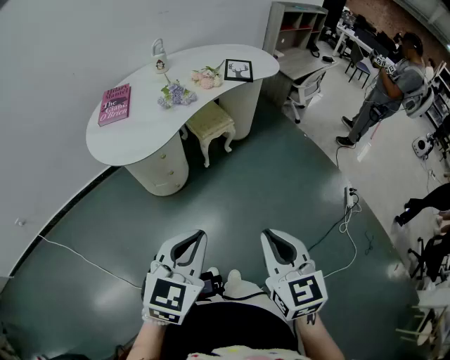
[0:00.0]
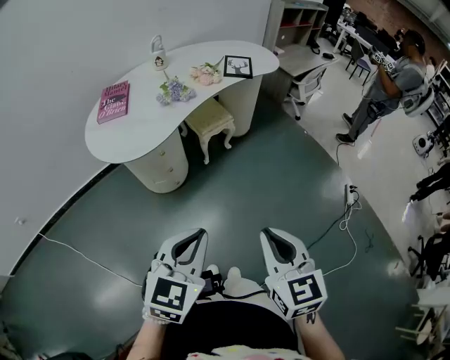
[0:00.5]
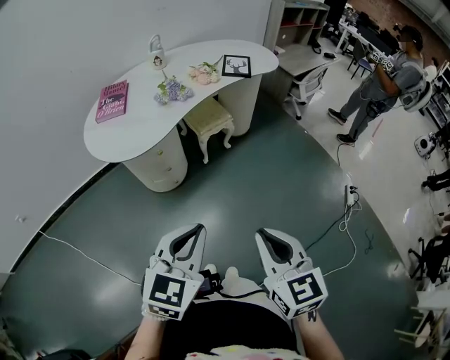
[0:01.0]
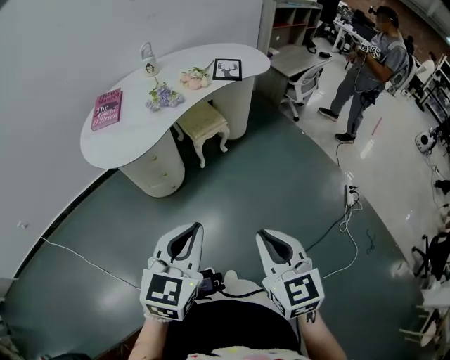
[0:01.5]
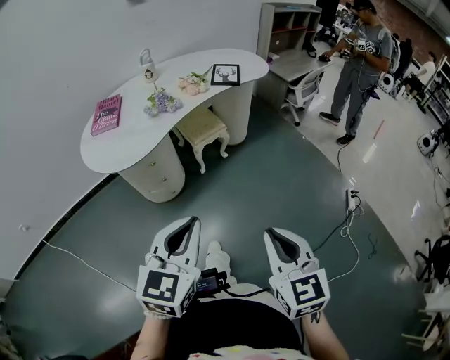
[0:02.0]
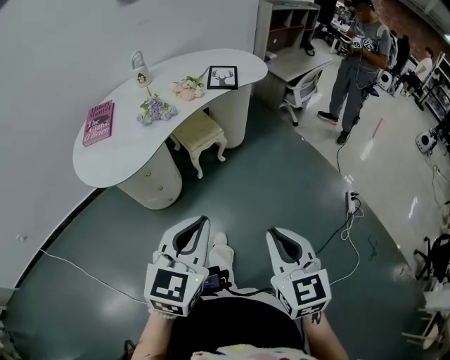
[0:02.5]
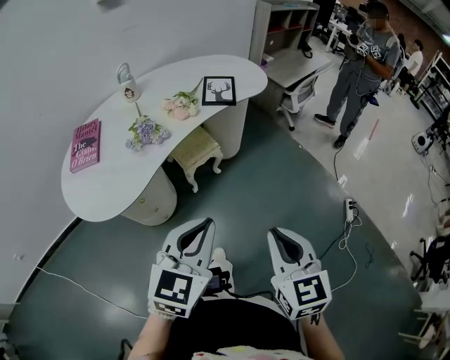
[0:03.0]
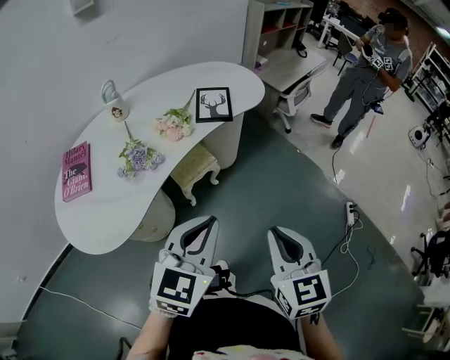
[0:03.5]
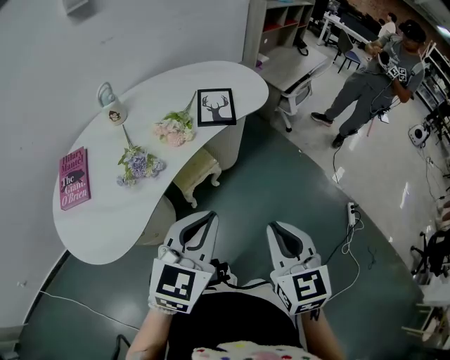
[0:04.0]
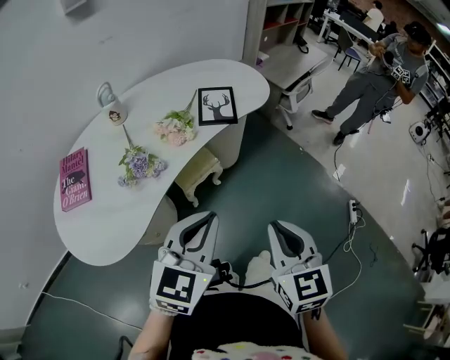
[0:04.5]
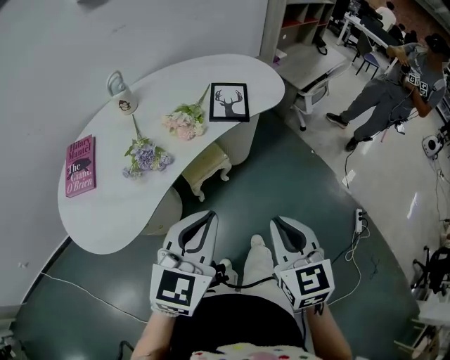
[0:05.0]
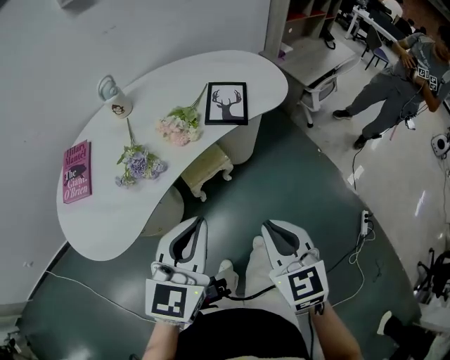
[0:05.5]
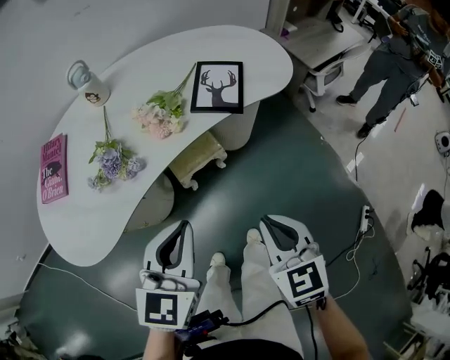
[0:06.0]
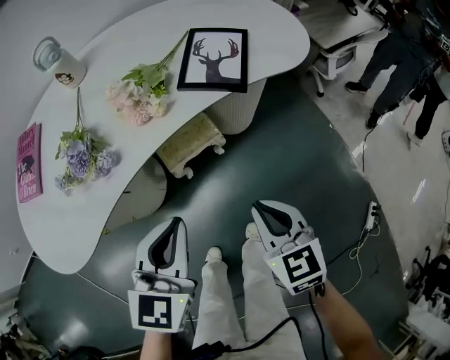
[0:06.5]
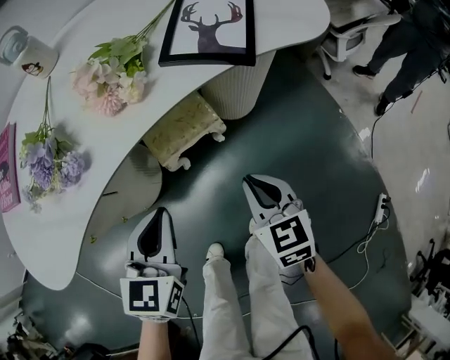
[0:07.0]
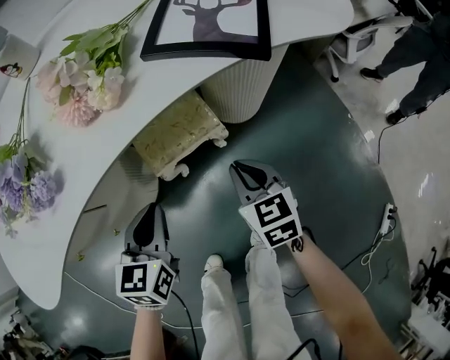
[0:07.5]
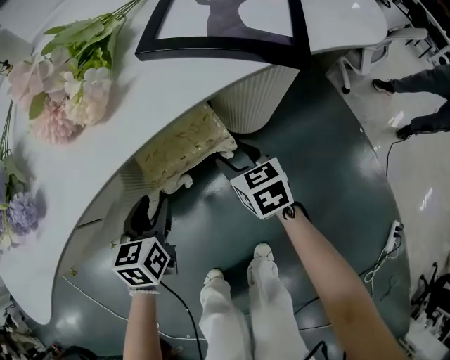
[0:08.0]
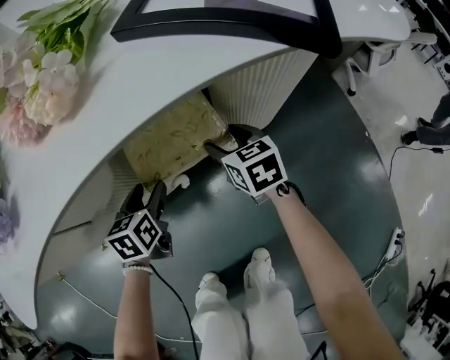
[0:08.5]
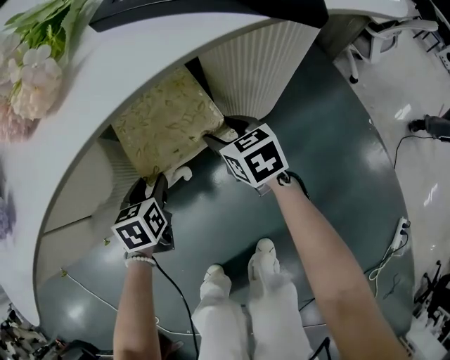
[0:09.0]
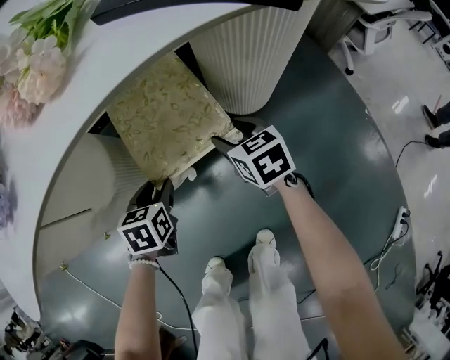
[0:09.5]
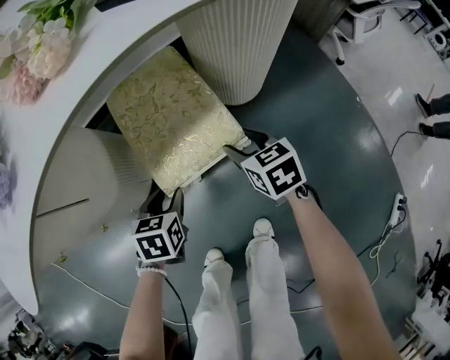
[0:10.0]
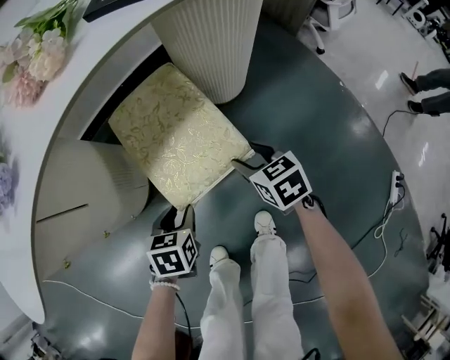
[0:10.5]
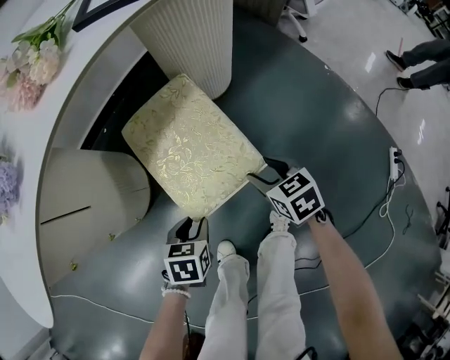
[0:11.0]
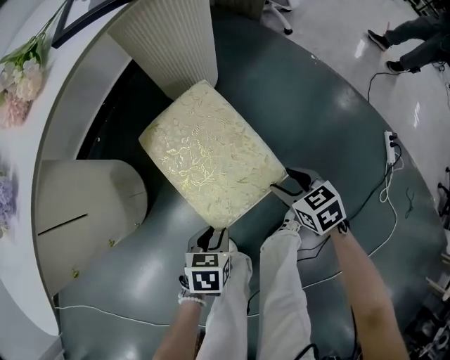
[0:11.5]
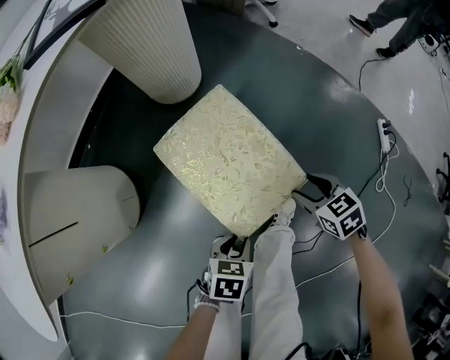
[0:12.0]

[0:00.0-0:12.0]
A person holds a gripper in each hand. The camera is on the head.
0:00.0 to 0:02.0: The two grippers go approximately 5 cm to the right.
0:02.0 to 0:04.0: Both grippers travel together forward, approximately 35 cm.
0:04.0 to 0:06.0: The right gripper is displaced forward and downward by roughly 15 cm, and turns by roughly 20 degrees; the left gripper shifts approximately 10 cm downward and forward, and changes its angle by roughly 20 degrees.
0:06.0 to 0:08.0: The left gripper travels downward by some 40 cm, turns by about 30 degrees, and opens its fingers. Meanwhile the right gripper travels downward and forward by some 50 cm, and opens up.
0:08.0 to 0:10.0: The left gripper is displaced downward and backward by roughly 10 cm. Meanwhile the right gripper goes roughly 5 cm backward.
0:10.0 to 0:12.0: The left gripper moves roughly 30 cm, and rotates roughly 40 degrees. The right gripper ends up approximately 35 cm from where it was, and changes its angle by some 20 degrees.

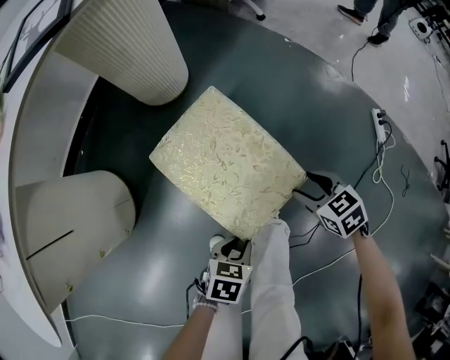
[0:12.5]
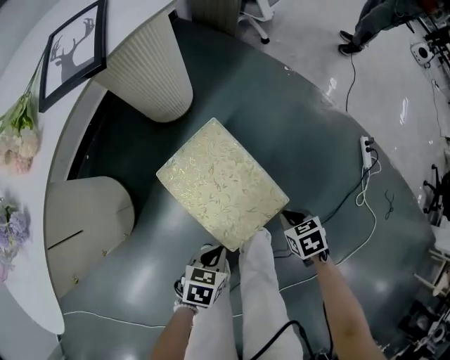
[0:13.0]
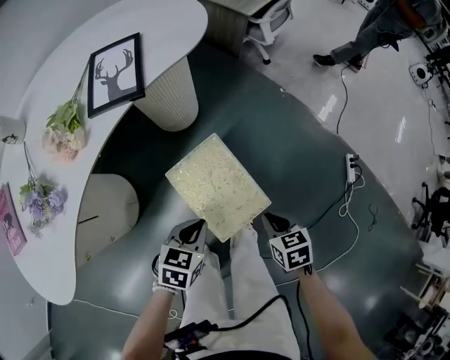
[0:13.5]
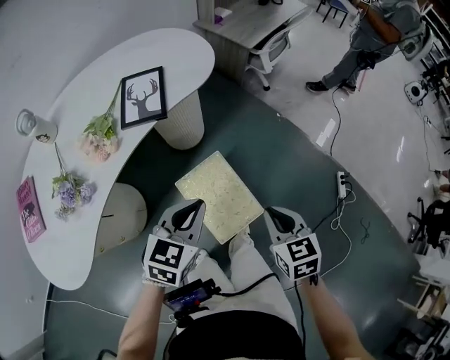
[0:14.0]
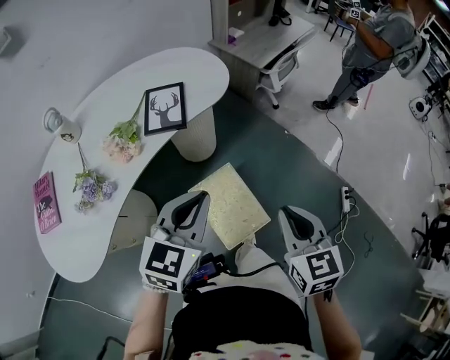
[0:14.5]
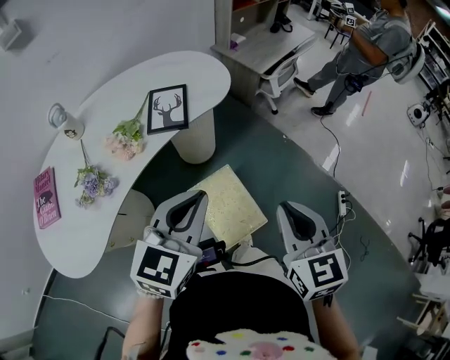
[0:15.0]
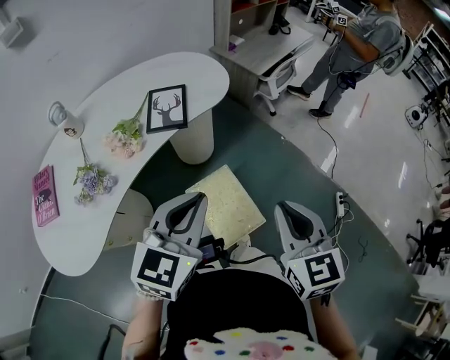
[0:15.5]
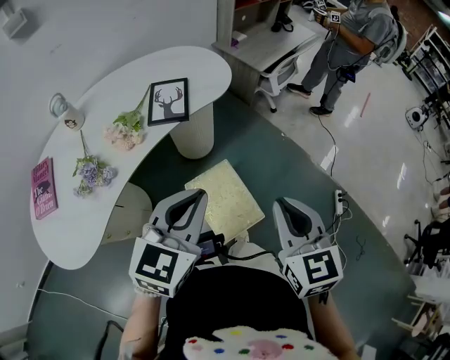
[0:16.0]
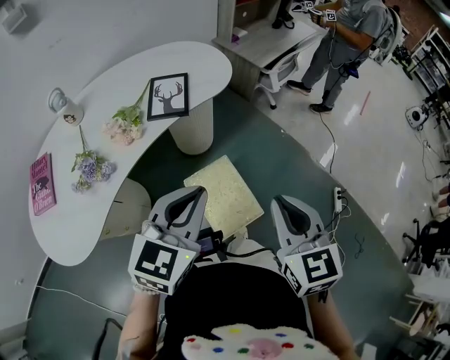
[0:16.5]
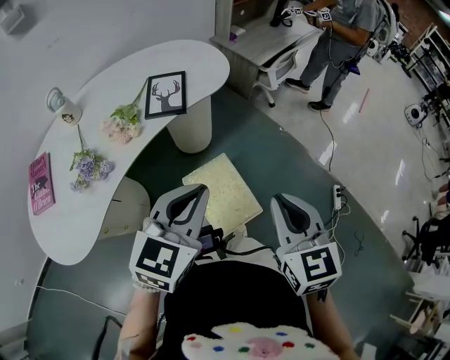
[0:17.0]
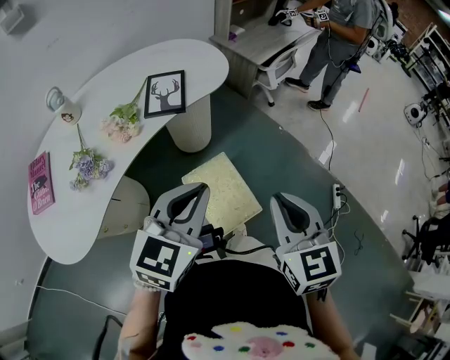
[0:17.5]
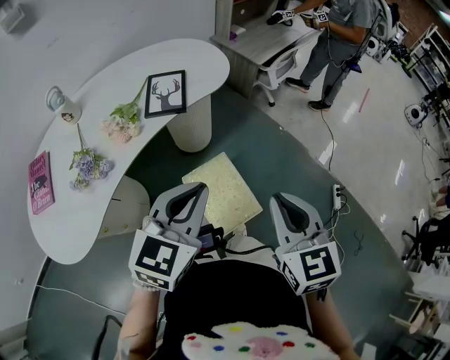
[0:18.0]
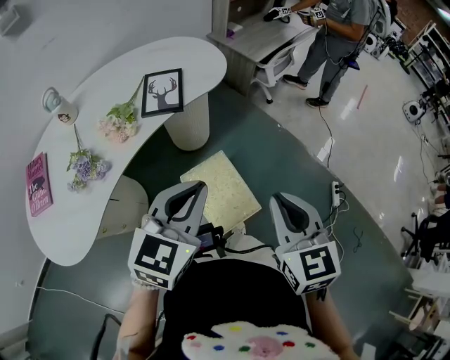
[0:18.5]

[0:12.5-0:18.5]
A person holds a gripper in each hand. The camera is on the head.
0:12.5 to 0:14.5: The two grippers go about 50 cm upward. The right gripper turns by approximately 30 degrees, and closes its fingers. The left gripper points its fingers approximately 30 degrees further upward, and closes its fingers.
0:14.5 to 0:16.5: The right gripper shifts about 5 cm upward, while the left gripper ends up about 5 cm from where it was.
0:16.5 to 0:18.5: The two grippers keep their place.

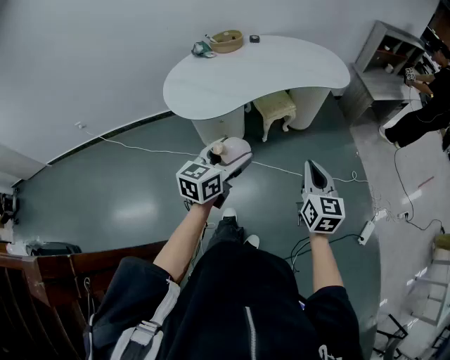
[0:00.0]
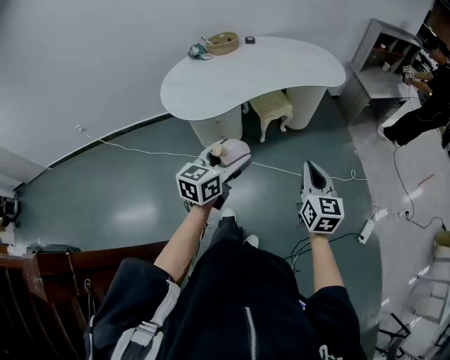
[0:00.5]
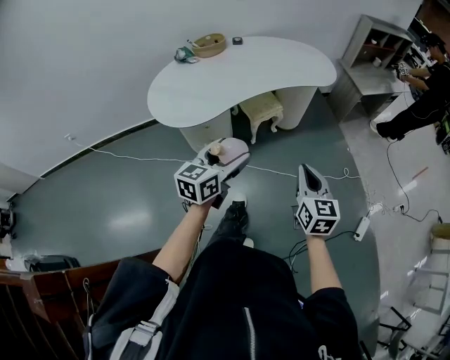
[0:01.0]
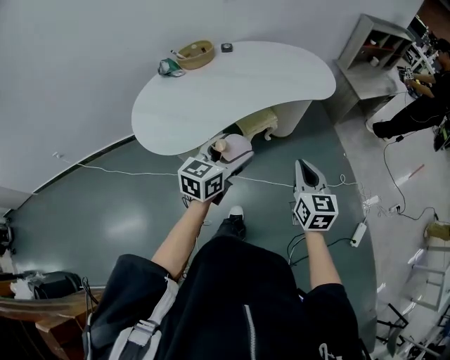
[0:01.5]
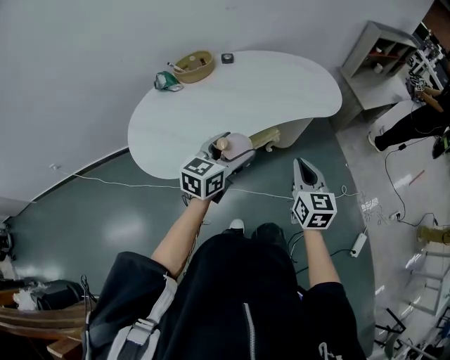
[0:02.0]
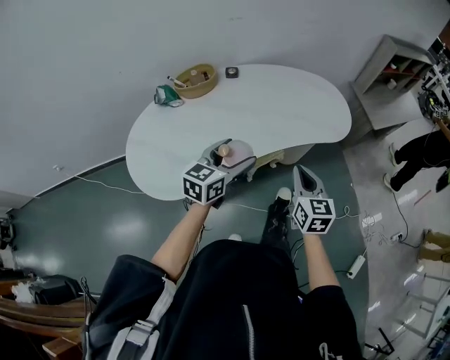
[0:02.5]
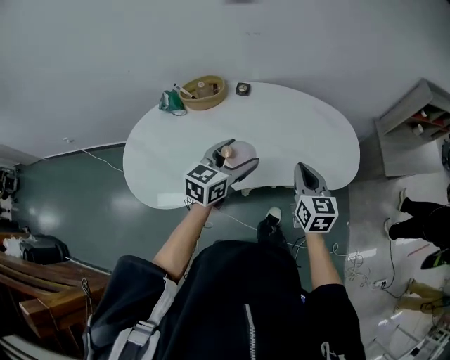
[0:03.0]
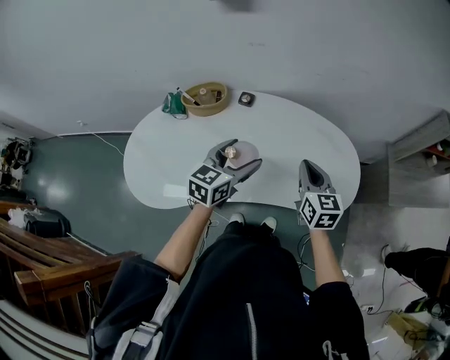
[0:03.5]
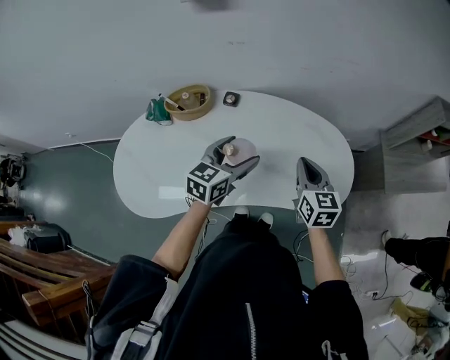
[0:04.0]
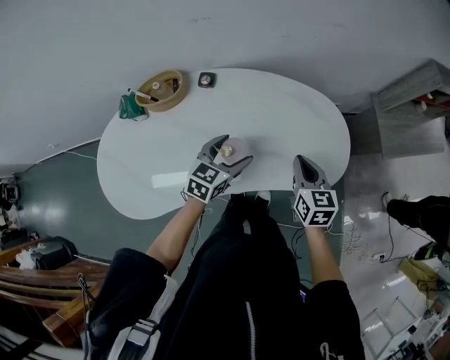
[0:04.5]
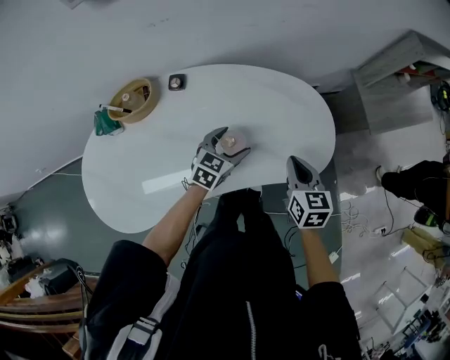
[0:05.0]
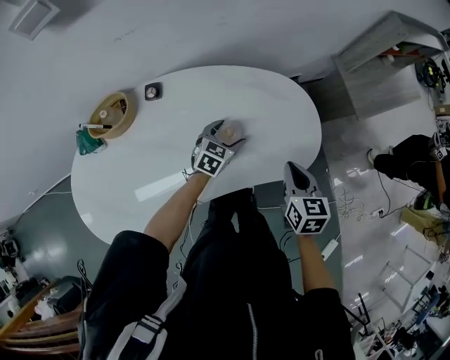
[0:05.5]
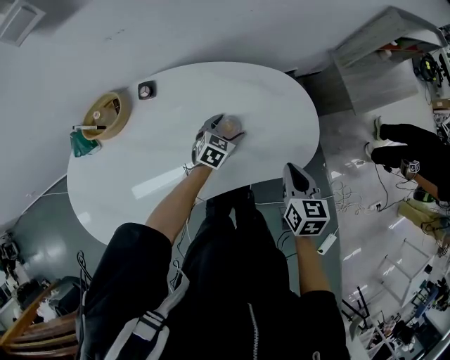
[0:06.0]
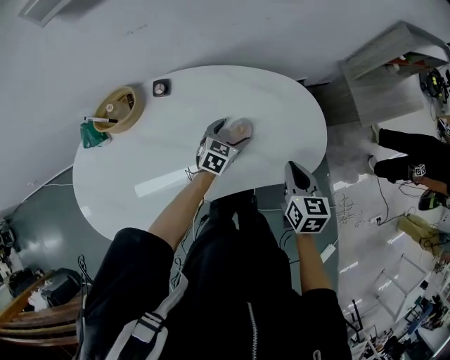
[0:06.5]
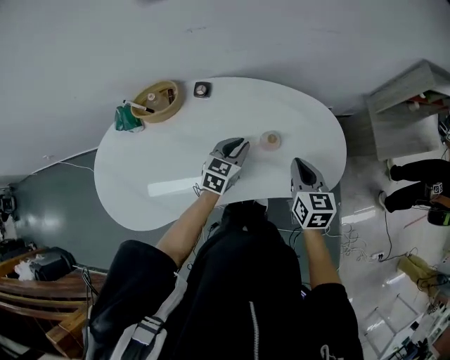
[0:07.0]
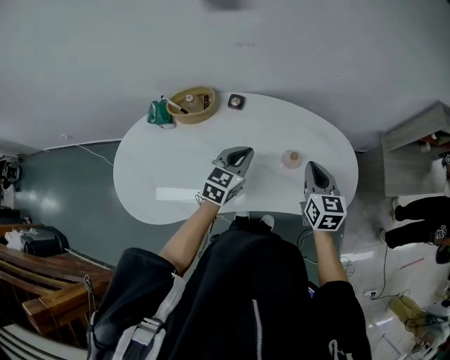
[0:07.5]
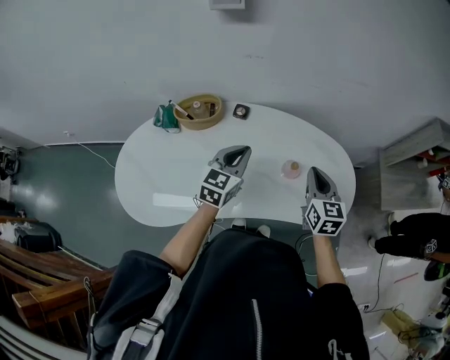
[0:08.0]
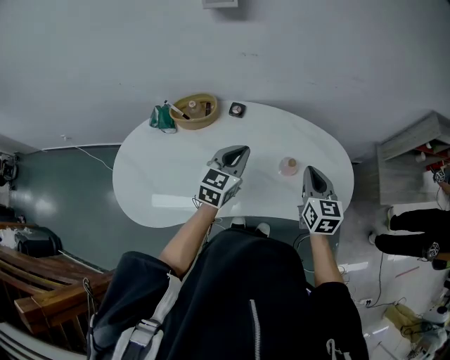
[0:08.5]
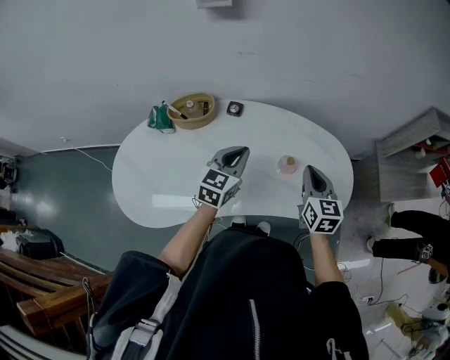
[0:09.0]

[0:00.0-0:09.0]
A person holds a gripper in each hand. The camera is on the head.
0:00.0 to 0:02.0: The two grippers go approximately 30 cm forward.
0:02.0 to 0:04.5: The pair of grippers is taken some 40 cm. The right gripper swivels approximately 20 degrees.
0:04.5 to 0:07.0: The right gripper moves approximately 10 cm to the right and comes back; the left gripper moves forward, some 5 cm, reaches roughly 15 cm downward, then returns, and closes up.
0:07.0 to 0:09.0: The left gripper heads upward and to the left, covering about 15 cm, while the right gripper moves upward, about 5 cm.
